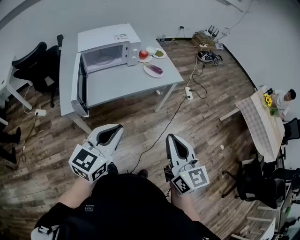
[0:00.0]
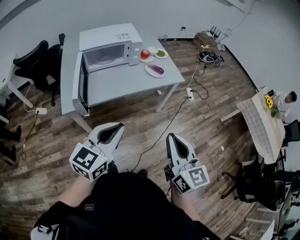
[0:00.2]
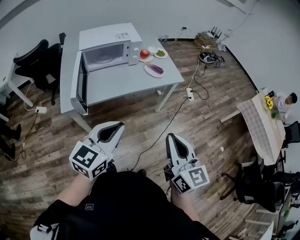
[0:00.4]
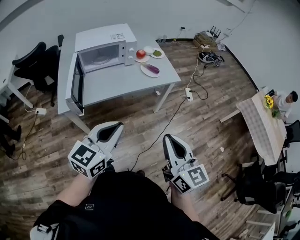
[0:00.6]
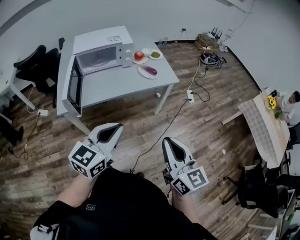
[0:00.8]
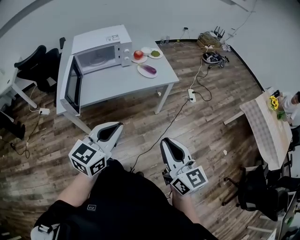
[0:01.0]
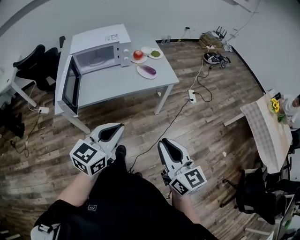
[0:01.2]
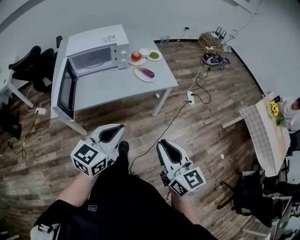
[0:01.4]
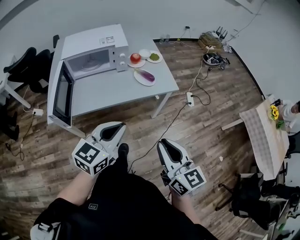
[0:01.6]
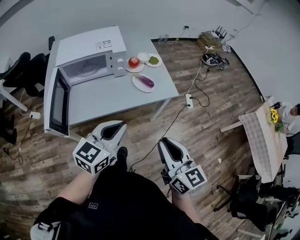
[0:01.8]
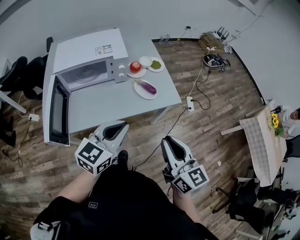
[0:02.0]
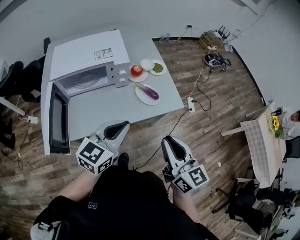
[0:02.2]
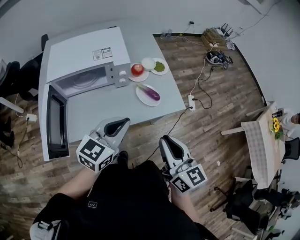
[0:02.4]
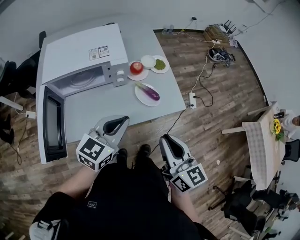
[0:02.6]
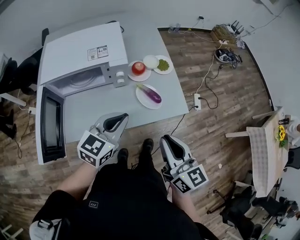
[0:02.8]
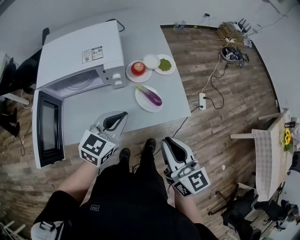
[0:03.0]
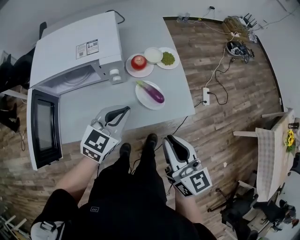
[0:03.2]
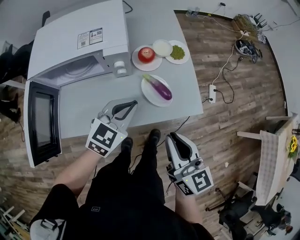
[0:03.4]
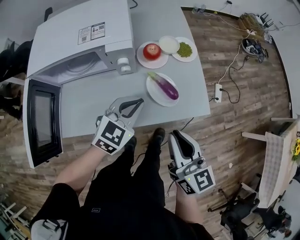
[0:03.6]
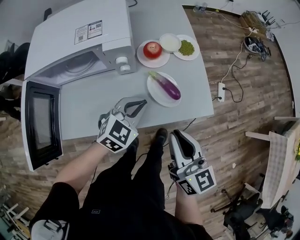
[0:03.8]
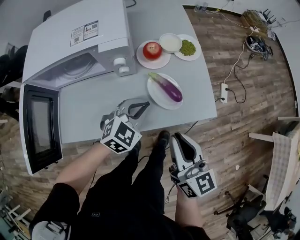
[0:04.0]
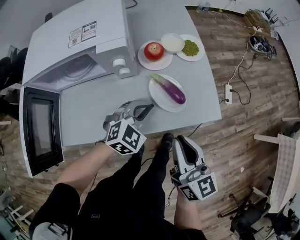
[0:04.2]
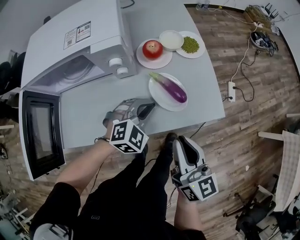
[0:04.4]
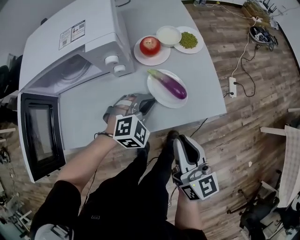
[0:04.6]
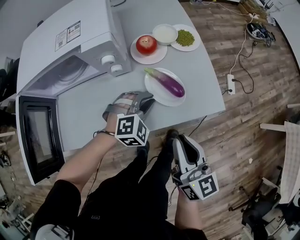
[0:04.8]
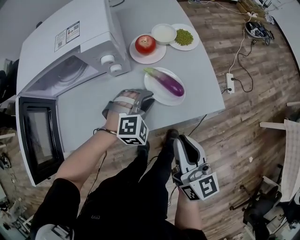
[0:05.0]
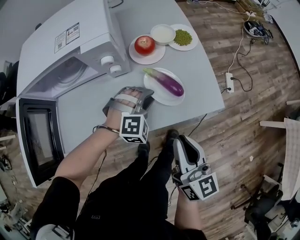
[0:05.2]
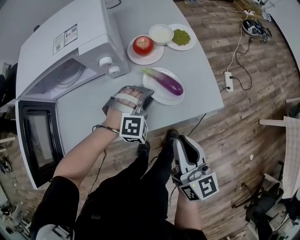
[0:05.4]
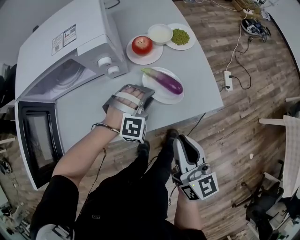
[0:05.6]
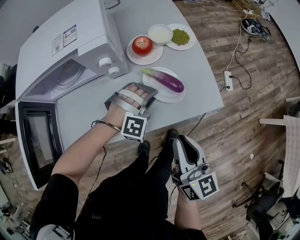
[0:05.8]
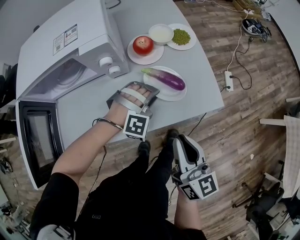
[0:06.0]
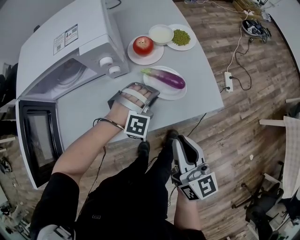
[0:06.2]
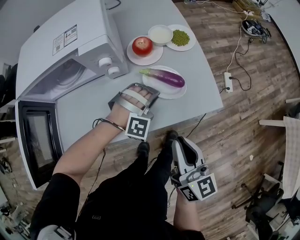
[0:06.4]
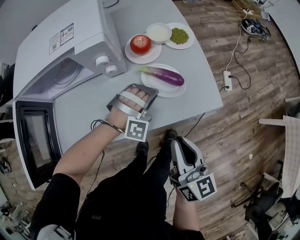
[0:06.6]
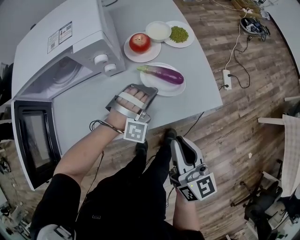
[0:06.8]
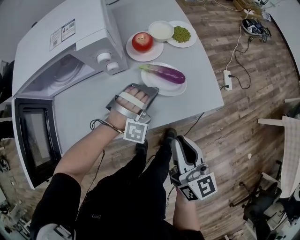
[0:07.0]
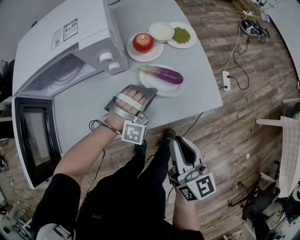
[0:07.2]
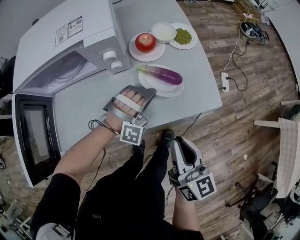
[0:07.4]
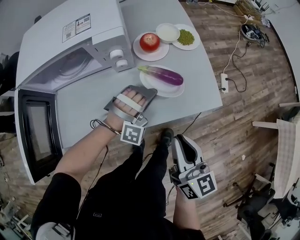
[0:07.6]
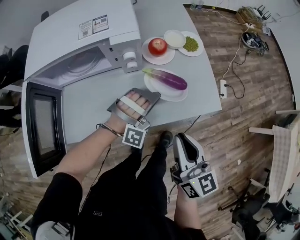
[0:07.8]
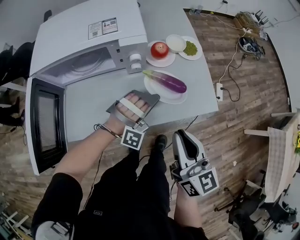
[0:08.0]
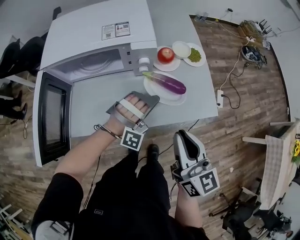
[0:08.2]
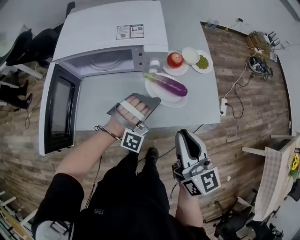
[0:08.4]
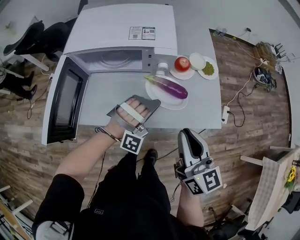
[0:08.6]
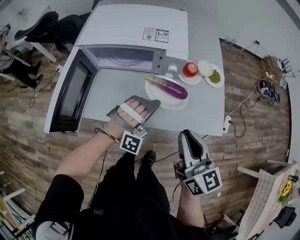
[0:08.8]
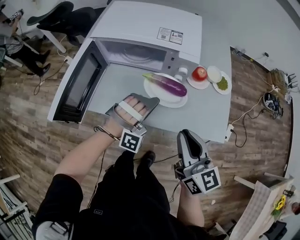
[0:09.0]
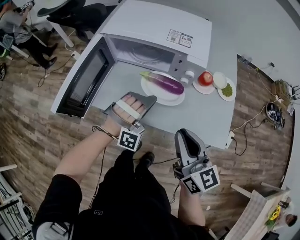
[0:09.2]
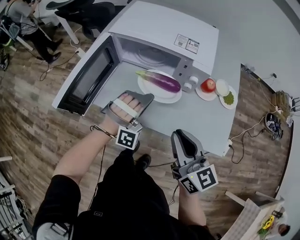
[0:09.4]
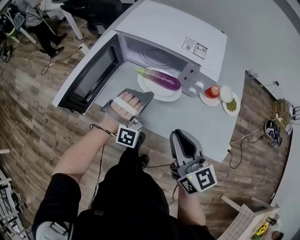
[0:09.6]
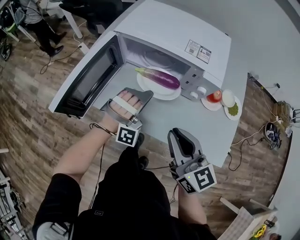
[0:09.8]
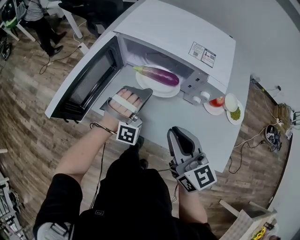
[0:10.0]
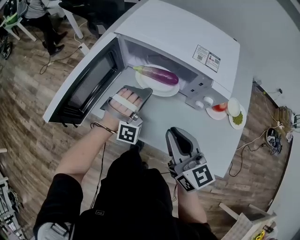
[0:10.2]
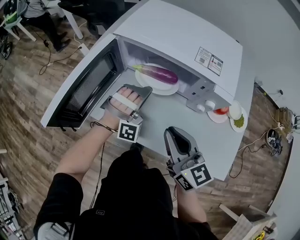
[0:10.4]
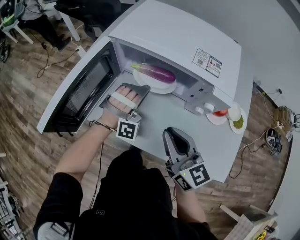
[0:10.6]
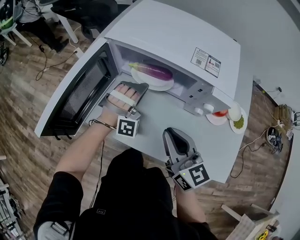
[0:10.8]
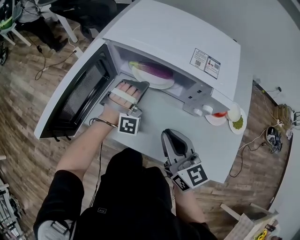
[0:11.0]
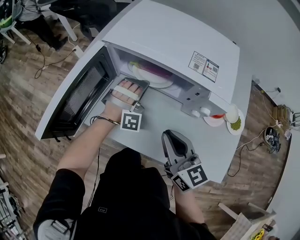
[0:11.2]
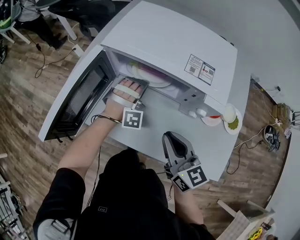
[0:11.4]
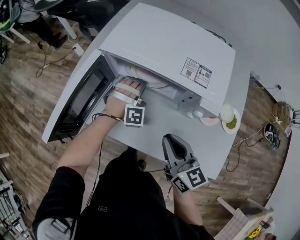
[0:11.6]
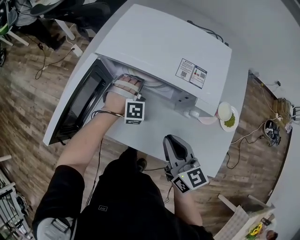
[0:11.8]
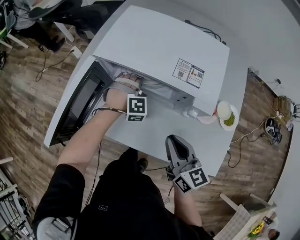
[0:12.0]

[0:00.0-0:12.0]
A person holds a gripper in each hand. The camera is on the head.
0:00.0 to 0:01.6: Both grippers move forward and to the right, about 15 cm.
0:01.6 to 0:03.0: Both grippers travel together forward, roughly 30 cm.
0:03.0 to 0:04.4: Both grippers travel together downward, some 20 cm. The left gripper swivels about 40 degrees.
0:04.4 to 0:06.0: The left gripper moves about 5 cm, and rolls clockwise, seen from behind, by approximately 40 degrees.
0:06.0 to 0:07.6: The left gripper changes its angle by approximately 20 degrees.
0:07.6 to 0:09.0: The left gripper changes place by some 20 cm, and turns by about 20 degrees. Meanwhile the right gripper shifts about 10 cm upward, and swivels some 30 degrees.
0:09.0 to 0:10.4: The right gripper travels forward, to the left and downward by approximately 15 cm, and swivels approximately 20 degrees. Meanwhile the left gripper travels forward and to the left by roughly 20 cm, and changes its angle by roughly 20 degrees.
0:10.4 to 0:12.0: The right gripper moves to the right, approximately 5 cm. The left gripper is displaced forward by approximately 10 cm, and tips its fingers downward by roughly 30 degrees.

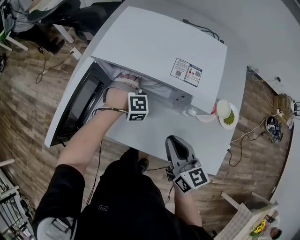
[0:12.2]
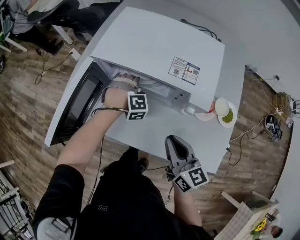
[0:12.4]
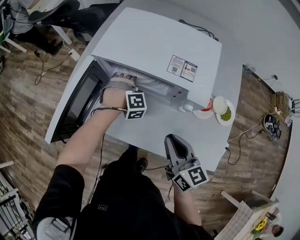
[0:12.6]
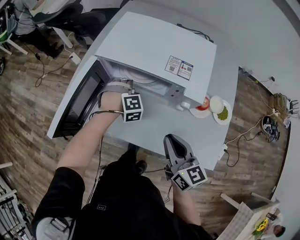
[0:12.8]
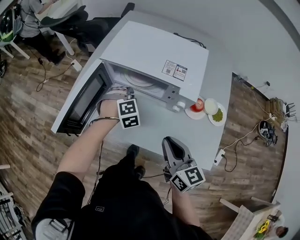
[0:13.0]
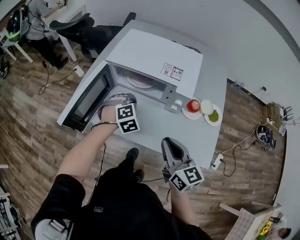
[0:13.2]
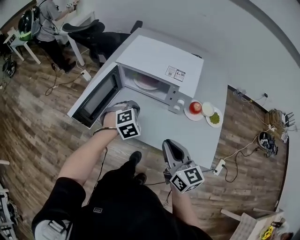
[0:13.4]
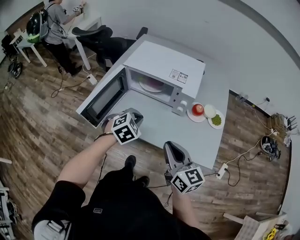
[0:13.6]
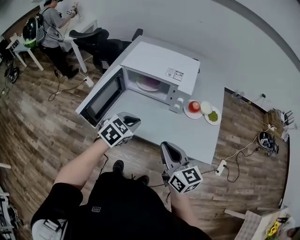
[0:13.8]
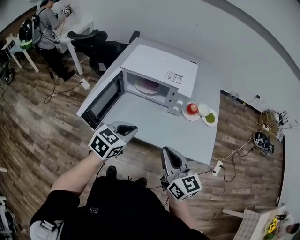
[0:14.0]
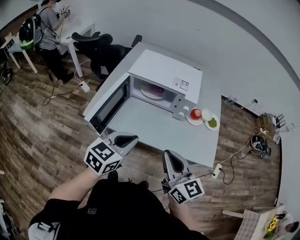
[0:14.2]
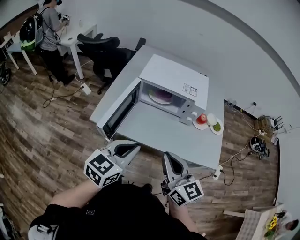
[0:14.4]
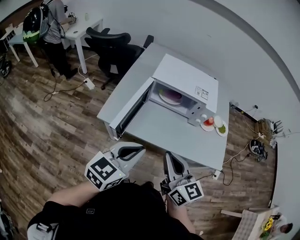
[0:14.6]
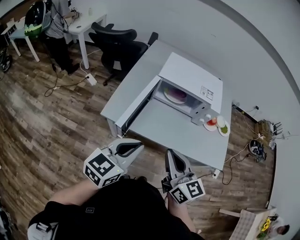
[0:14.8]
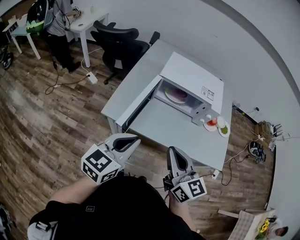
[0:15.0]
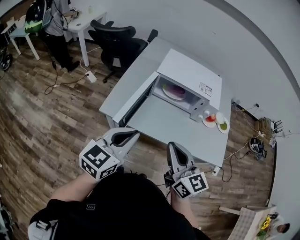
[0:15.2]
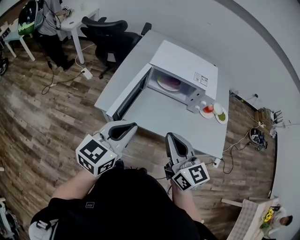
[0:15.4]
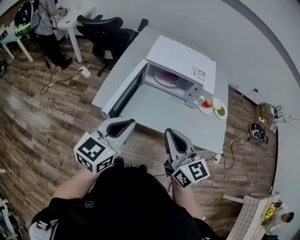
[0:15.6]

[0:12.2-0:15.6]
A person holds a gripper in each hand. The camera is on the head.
0:12.2 to 0:13.8: The left gripper ends up approximately 35 cm from where it was, and twists approximately 50 degrees counterclockwise, seen from behind, while the right gripper shifts by approximately 20 cm.
0:13.8 to 0:15.6: The right gripper goes some 20 cm to the left. The left gripper is displaced to the left, upward and backward by approximately 25 cm, and angles its fingers upward, by roughly 30 degrees.

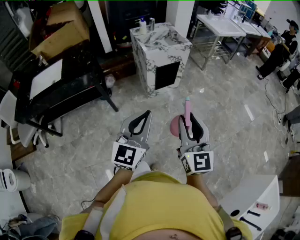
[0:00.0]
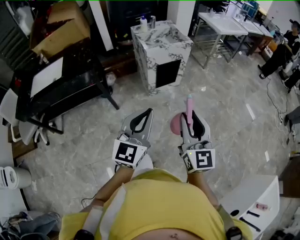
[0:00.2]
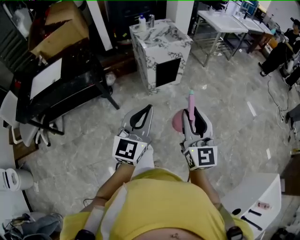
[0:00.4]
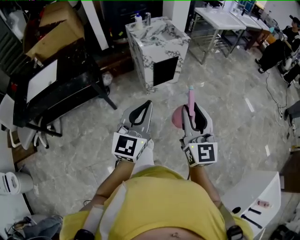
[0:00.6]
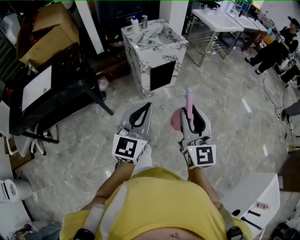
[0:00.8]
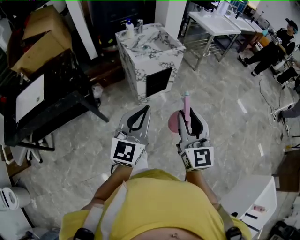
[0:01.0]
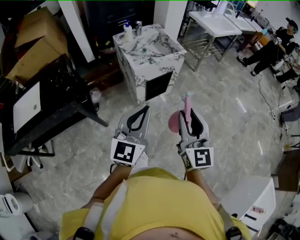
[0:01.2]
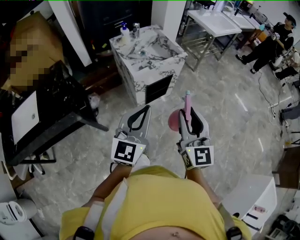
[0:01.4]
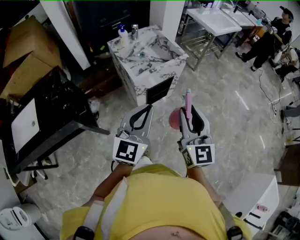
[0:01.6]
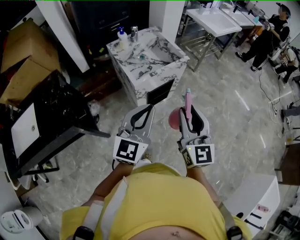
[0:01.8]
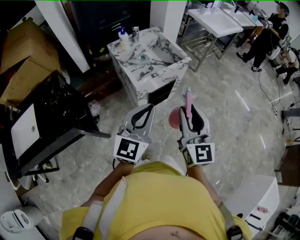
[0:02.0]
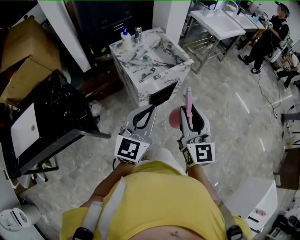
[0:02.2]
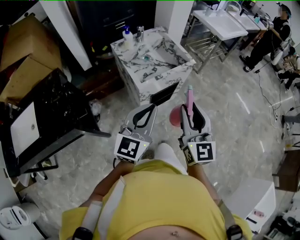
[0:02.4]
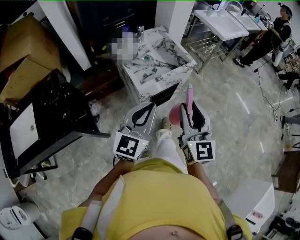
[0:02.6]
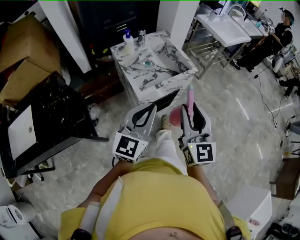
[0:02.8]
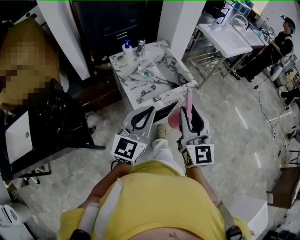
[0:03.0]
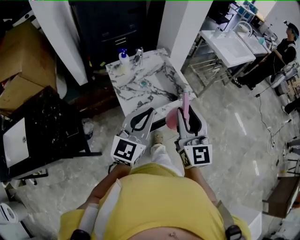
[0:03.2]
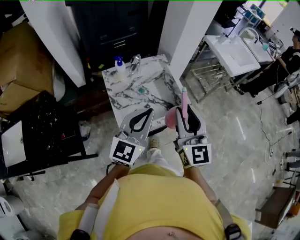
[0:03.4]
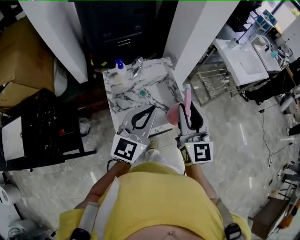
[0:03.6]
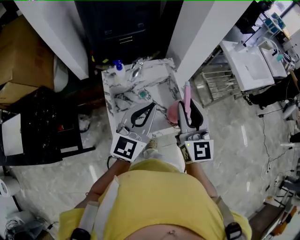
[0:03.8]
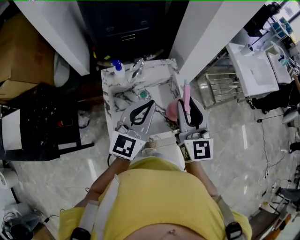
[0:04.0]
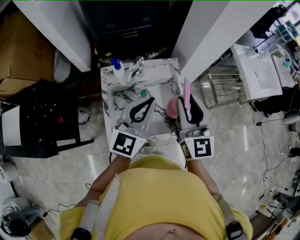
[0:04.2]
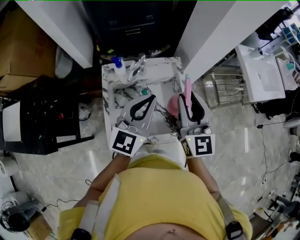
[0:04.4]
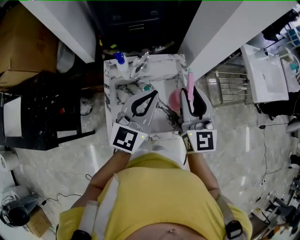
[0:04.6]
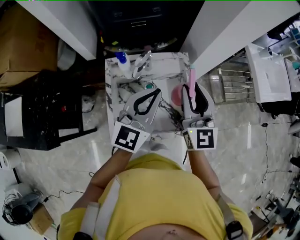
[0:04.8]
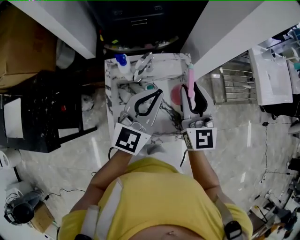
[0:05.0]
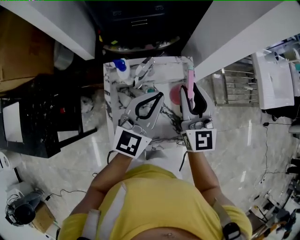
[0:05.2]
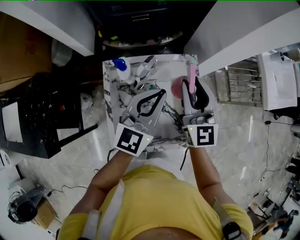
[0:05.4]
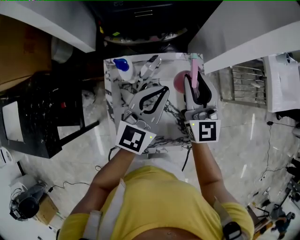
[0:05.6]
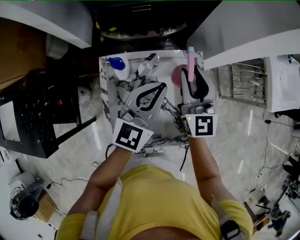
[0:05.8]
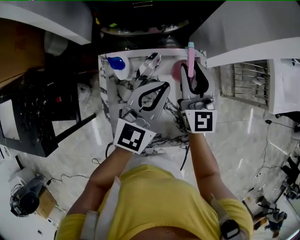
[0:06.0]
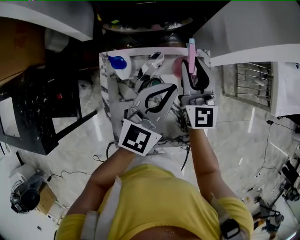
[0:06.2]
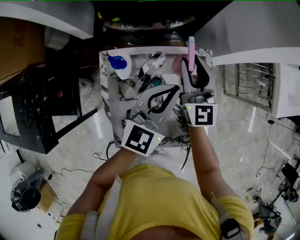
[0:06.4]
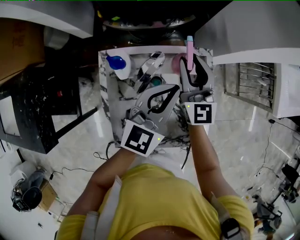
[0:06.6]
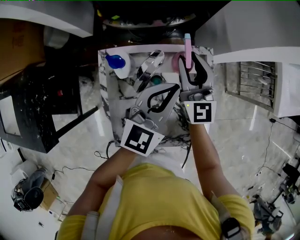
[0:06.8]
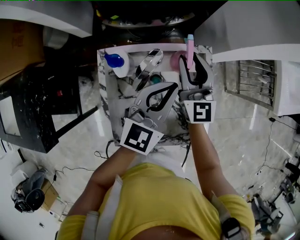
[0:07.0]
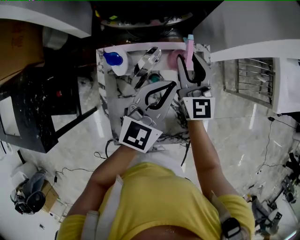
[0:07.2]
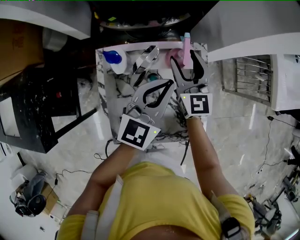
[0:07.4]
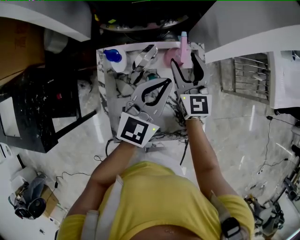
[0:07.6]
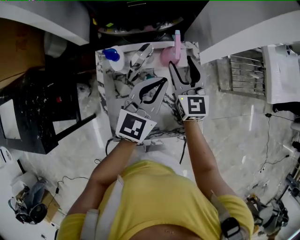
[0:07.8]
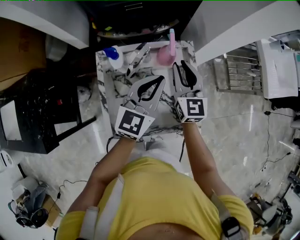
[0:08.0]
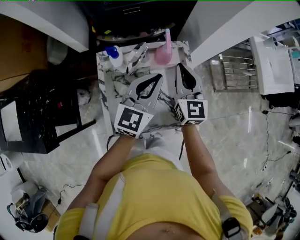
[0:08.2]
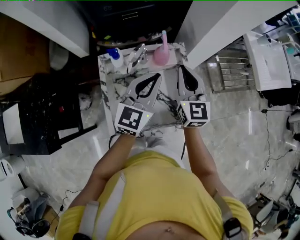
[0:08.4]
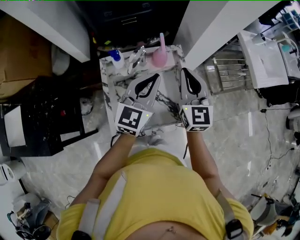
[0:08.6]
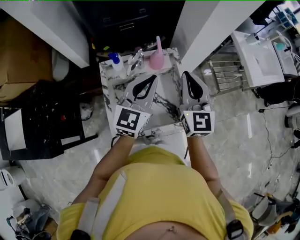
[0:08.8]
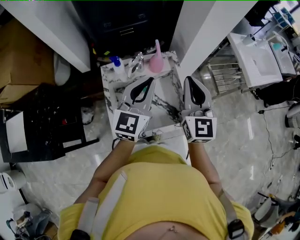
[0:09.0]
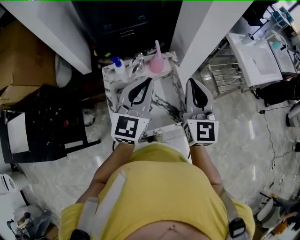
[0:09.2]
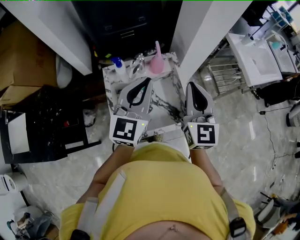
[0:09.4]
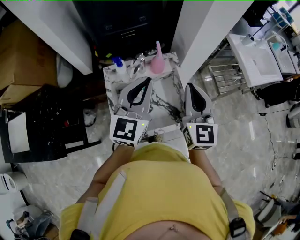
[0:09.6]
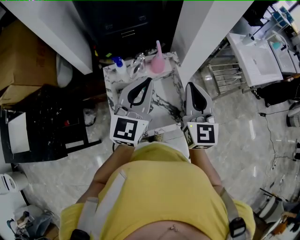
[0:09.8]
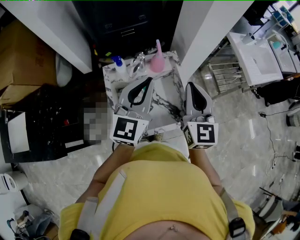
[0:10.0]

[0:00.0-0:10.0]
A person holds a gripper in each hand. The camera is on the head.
0:00.0 to 0:01.4: The grippers both shift forward by some 30 cm.
0:01.4 to 0:02.8: The grippers both shift forward by approximately 15 cm.
0:02.8 to 0:04.2: The grippers both shift forward by approximately 40 cm. The right gripper changes its angle by approximately 20 degrees.
0:04.2 to 0:05.8: The two grippers go roughly 20 cm forward and downward.
0:05.8 to 0:07.2: The right gripper heads downward, covering roughly 5 cm.
0:07.2 to 0:08.6: The right gripper moves backward, upward and to the right, some 20 cm, and closes, while the left gripper heads upward and backward, covering about 10 cm.
0:08.6 to 0:10.0: The left gripper is displaced upward and backward by about 10 cm; the right gripper goes about 10 cm backward and upward.
